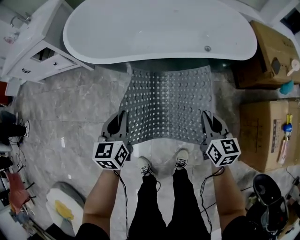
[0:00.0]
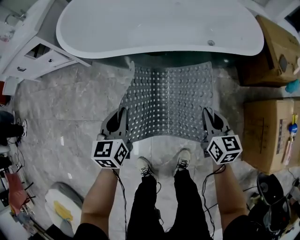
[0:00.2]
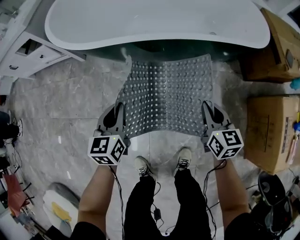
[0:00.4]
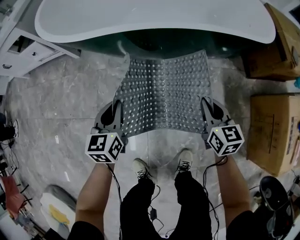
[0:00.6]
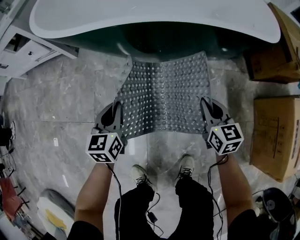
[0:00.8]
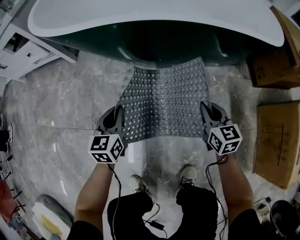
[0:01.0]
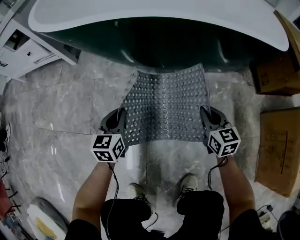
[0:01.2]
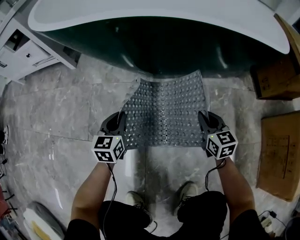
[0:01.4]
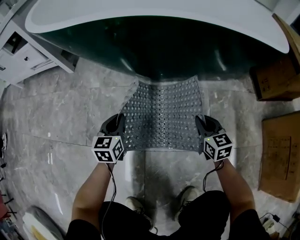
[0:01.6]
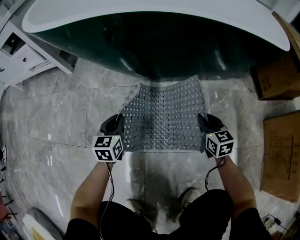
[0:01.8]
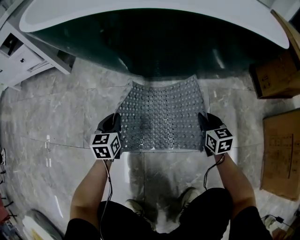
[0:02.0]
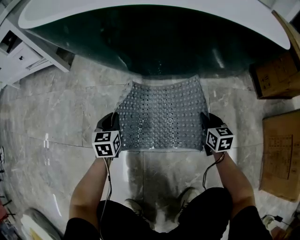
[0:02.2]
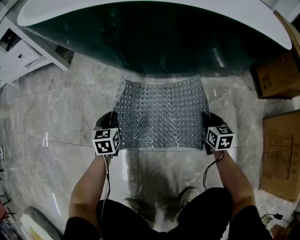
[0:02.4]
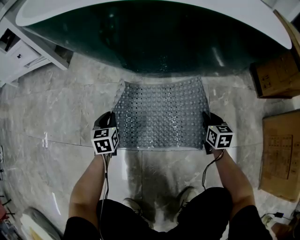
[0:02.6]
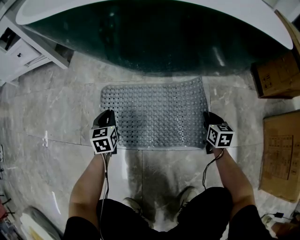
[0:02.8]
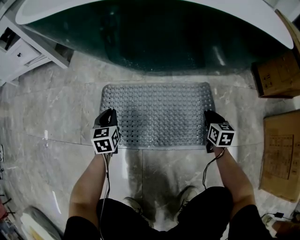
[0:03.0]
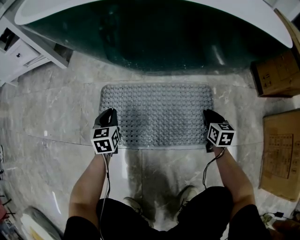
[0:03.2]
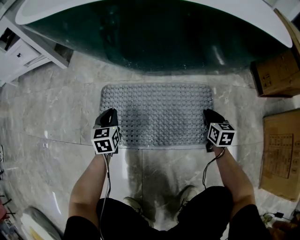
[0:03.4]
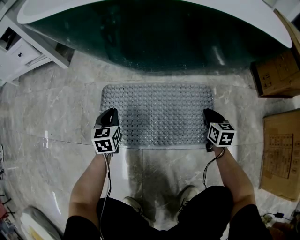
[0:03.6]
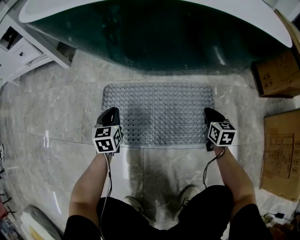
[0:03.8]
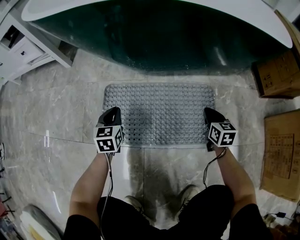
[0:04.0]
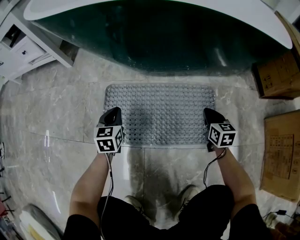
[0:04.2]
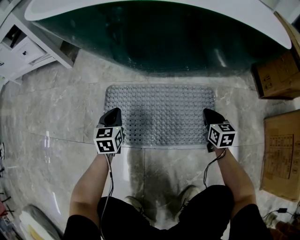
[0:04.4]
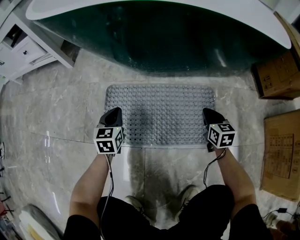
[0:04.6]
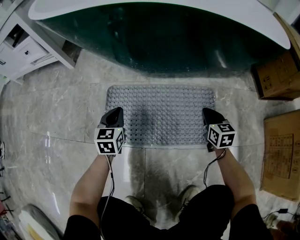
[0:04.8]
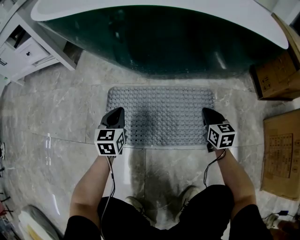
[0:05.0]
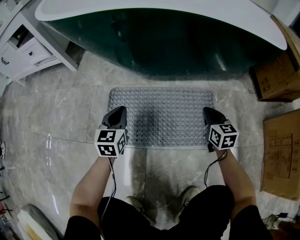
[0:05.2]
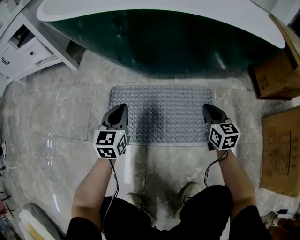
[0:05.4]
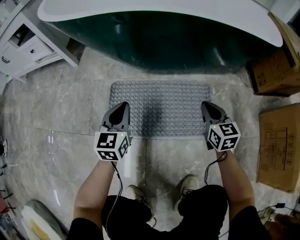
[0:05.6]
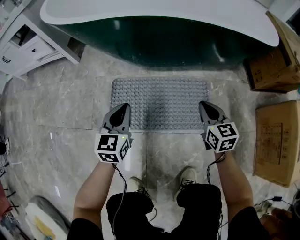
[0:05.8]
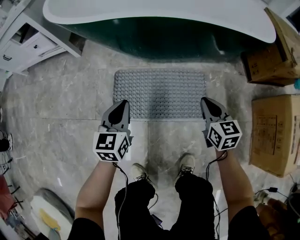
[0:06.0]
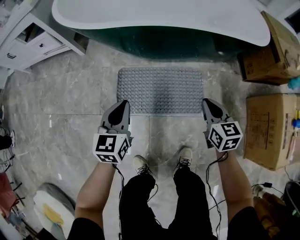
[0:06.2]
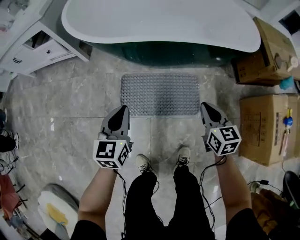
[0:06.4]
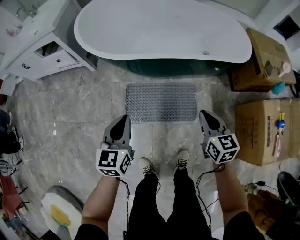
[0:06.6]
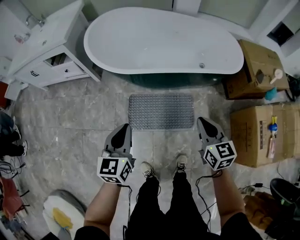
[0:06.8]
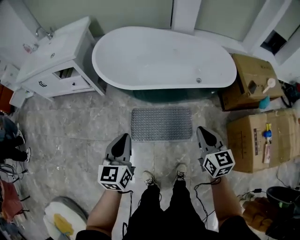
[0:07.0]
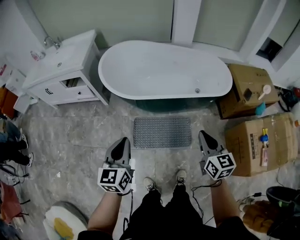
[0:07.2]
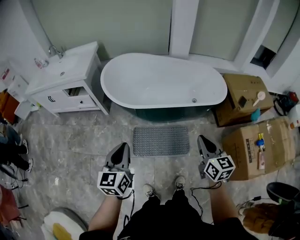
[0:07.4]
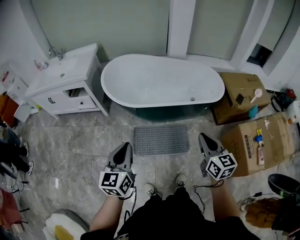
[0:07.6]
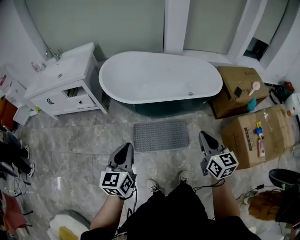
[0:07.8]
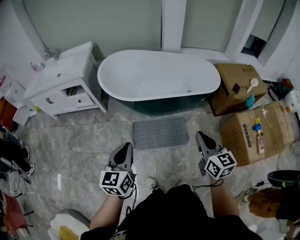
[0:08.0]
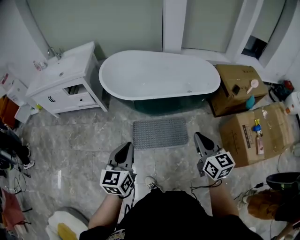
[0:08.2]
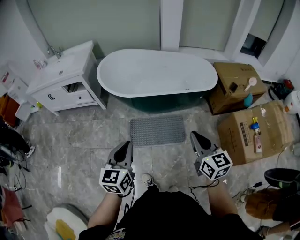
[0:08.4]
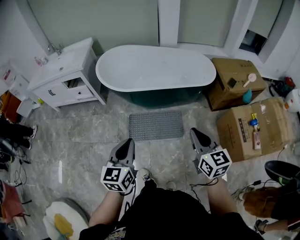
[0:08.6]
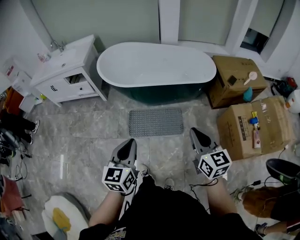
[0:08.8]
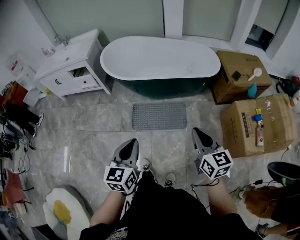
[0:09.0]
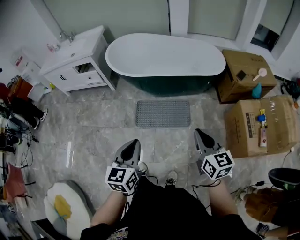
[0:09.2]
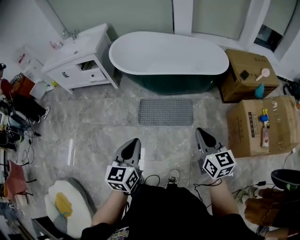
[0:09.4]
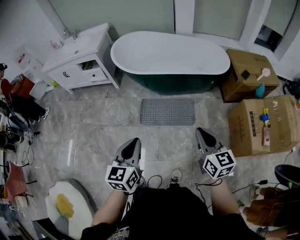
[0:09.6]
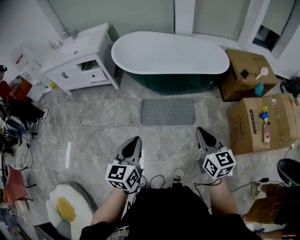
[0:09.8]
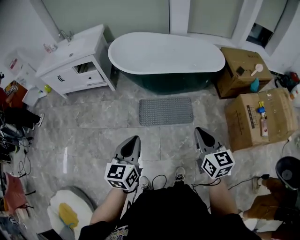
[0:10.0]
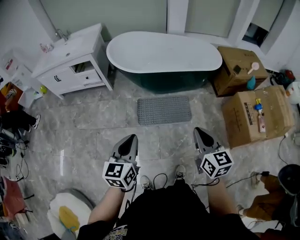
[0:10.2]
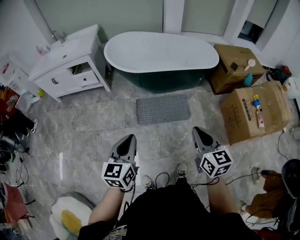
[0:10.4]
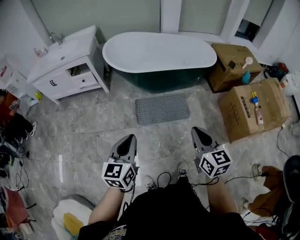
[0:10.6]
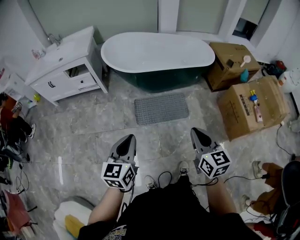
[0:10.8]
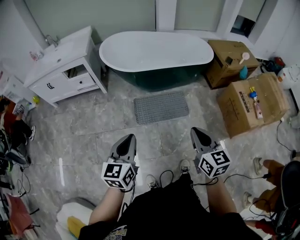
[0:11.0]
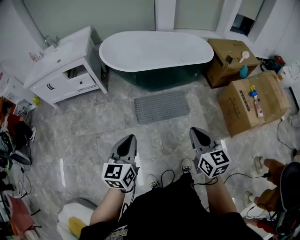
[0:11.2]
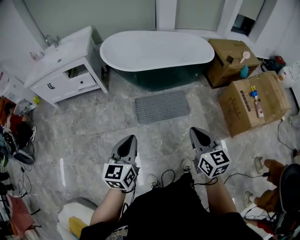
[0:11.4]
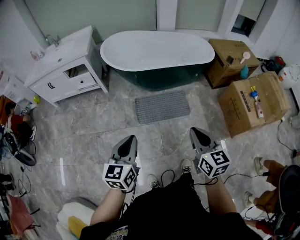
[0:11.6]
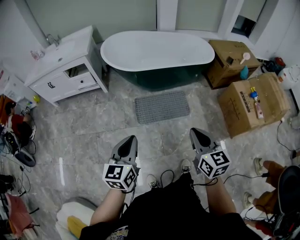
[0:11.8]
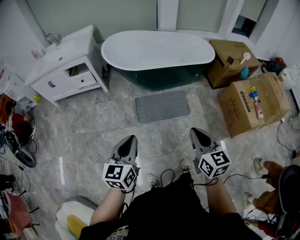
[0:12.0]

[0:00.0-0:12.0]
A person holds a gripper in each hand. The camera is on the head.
0:00.0 to 0:01.6: The two grippers go approximately 40 cm downward.
0:01.6 to 0:03.0: The left gripper is displaced downward by roughly 5 cm, while the right gripper shifts approximately 15 cm downward and to the right, and changes its angle by about 20 degrees.
0:03.0 to 0:04.4: The grippers stay close to where they were, moving slightly.
0:04.4 to 0:06.0: Both grippers travel together upward, about 25 cm.
0:06.0 to 0:07.6: The two grippers go approximately 60 cm upward.
0:07.6 to 0:09.0: The grippers both shift backward and to the right by roughly 20 cm.
0:09.0 to 0:10.4: The grippers both shift to the left by roughly 20 cm.
0:10.4 to 0:12.0: The right gripper moves some 5 cm.

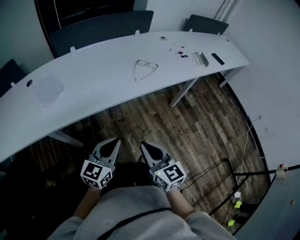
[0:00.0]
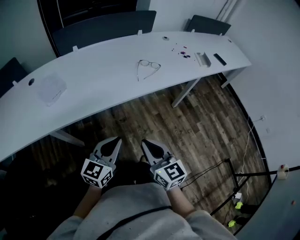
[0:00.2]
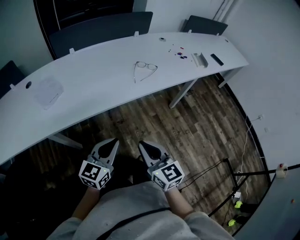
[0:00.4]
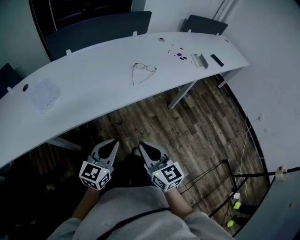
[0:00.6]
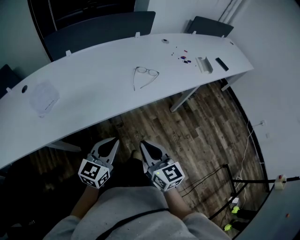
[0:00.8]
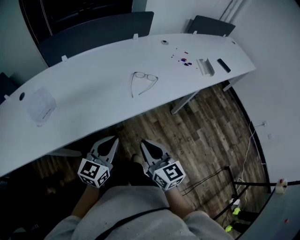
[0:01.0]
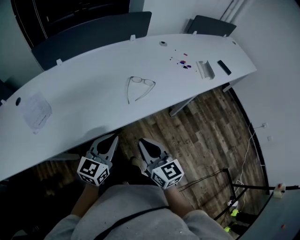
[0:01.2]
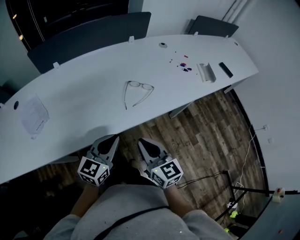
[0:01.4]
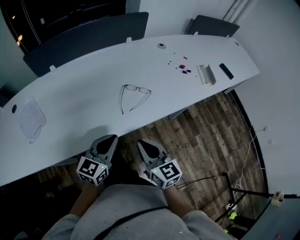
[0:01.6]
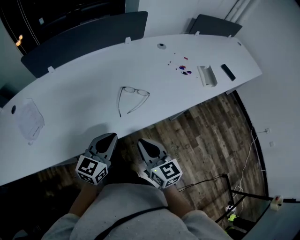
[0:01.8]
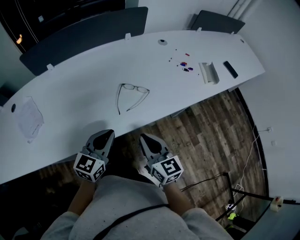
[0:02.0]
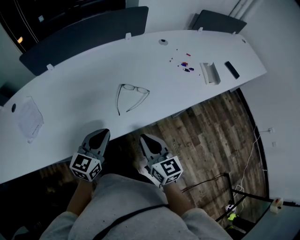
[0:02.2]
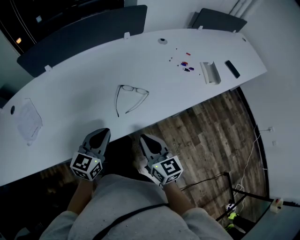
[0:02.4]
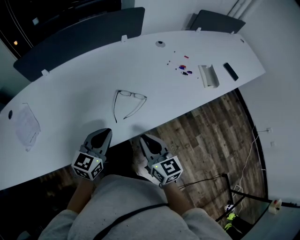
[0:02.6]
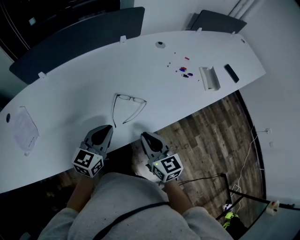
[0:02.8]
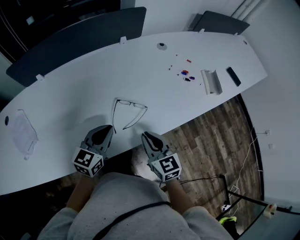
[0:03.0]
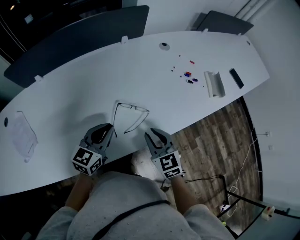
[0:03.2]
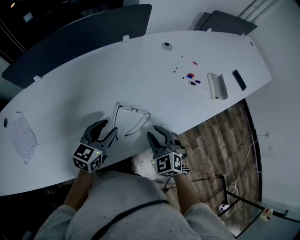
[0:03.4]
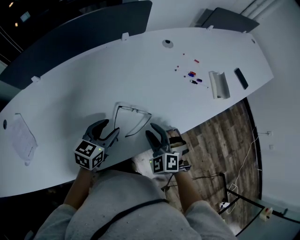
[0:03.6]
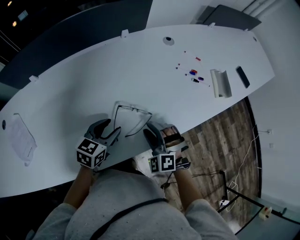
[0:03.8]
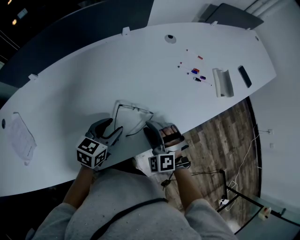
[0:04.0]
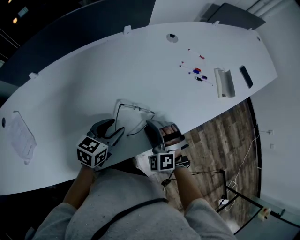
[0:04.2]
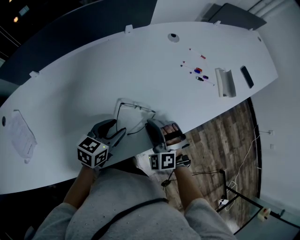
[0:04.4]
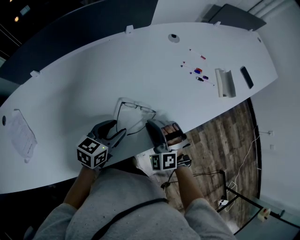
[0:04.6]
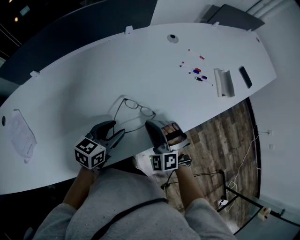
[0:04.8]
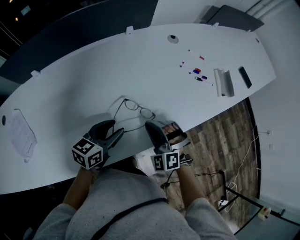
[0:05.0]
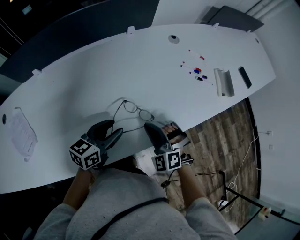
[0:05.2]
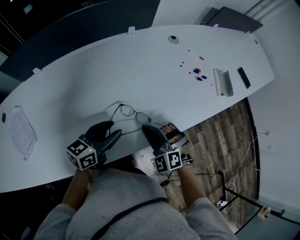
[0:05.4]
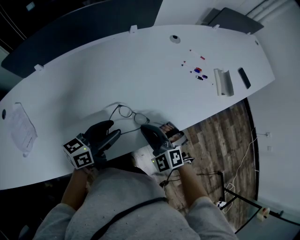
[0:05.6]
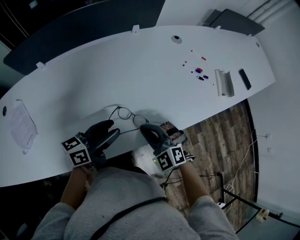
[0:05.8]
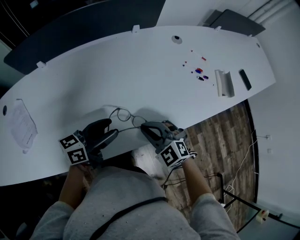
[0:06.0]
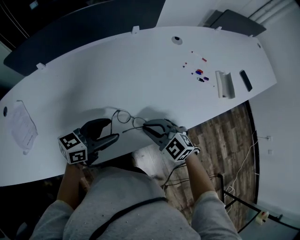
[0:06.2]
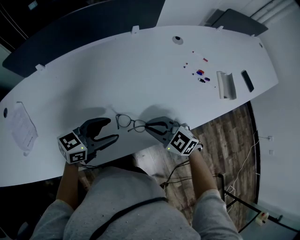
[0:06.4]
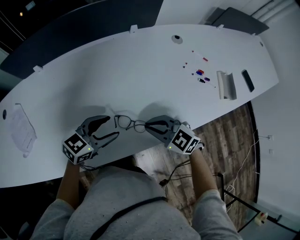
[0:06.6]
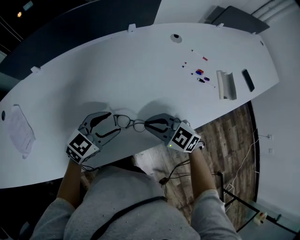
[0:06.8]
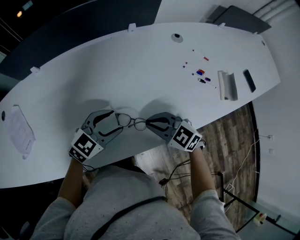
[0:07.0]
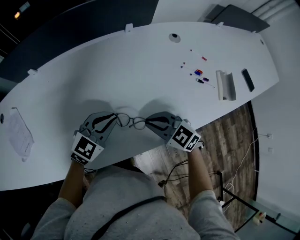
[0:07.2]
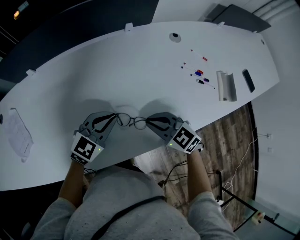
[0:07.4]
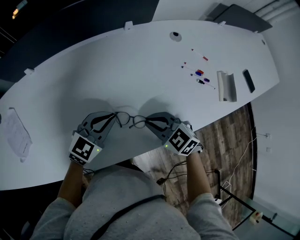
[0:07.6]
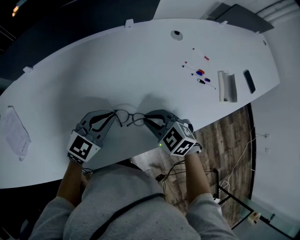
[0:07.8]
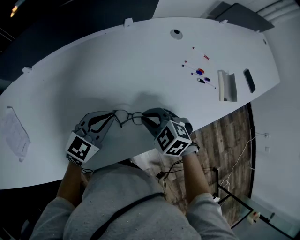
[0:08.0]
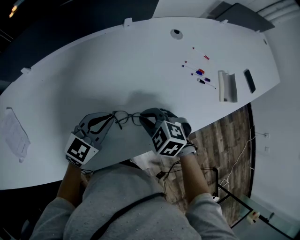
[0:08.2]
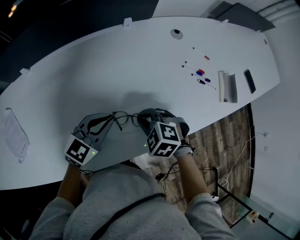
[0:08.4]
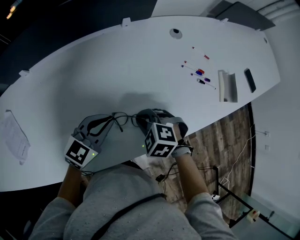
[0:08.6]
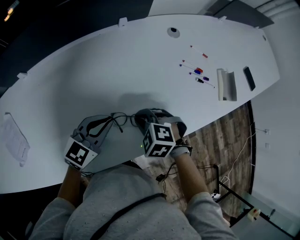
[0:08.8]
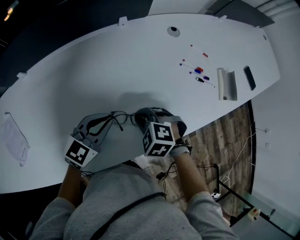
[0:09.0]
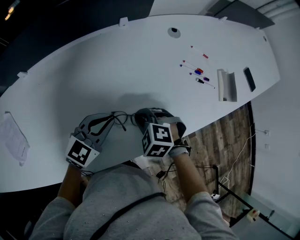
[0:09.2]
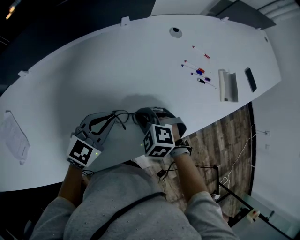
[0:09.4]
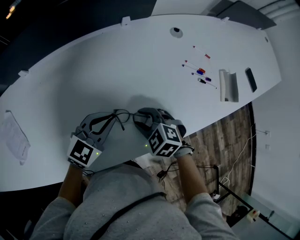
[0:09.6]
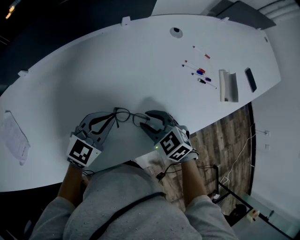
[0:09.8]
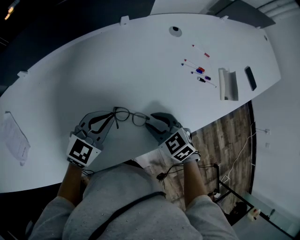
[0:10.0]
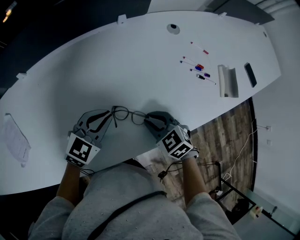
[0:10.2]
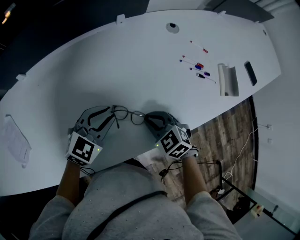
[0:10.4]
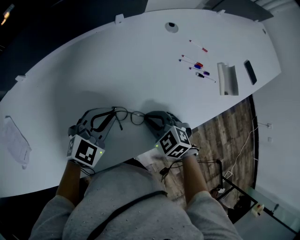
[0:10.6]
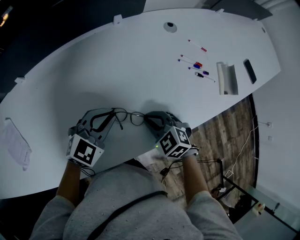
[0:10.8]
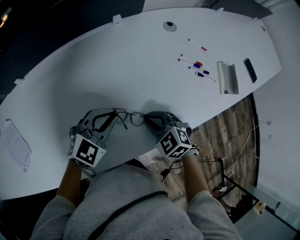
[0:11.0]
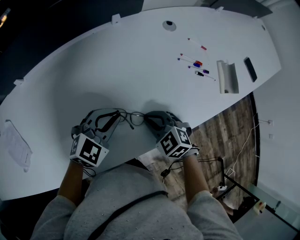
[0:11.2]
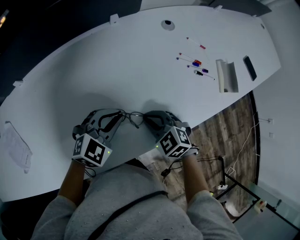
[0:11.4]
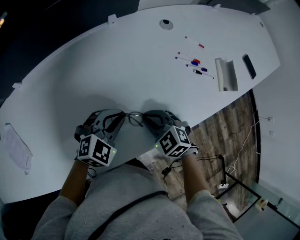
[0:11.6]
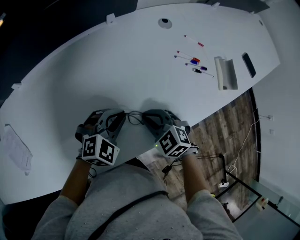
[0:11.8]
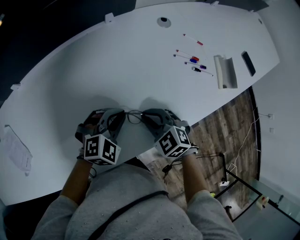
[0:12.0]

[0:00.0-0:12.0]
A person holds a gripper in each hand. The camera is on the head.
0:00.0 to 0:01.6: The grippers both shift forward by approximately 30 cm.
0:01.6 to 0:03.0: Both grippers move forward, approximately 15 cm.
0:03.0 to 0:04.4: The right gripper shifts roughly 10 cm forward and downward, twists approximately 70 degrees counterclockwise, seen from behind, and opens its fingers. The left gripper shifts approximately 10 cm downward and forward, turns by roughly 20 degrees, and opens up.
0:04.4 to 0:06.0: The right gripper heads backward, covering approximately 5 cm, and turns by some 30 degrees, while the left gripper travels upward by roughly 5 cm, and changes its angle by about 30 degrees.
0:06.0 to 0:07.6: The left gripper ends up roughly 10 cm from where it was, rolls clockwise, seen from behind, by roughly 40 degrees, and closes its fingers, while the right gripper changes place by roughly 10 cm, and rotates approximately 20 degrees.
0:07.6 to 0:09.0: The right gripper rotates approximately 30 degrees.
0:09.0 to 0:10.4: The right gripper turns by approximately 20 degrees, and opens, then closes again.
0:10.4 to 0:12.0: The left gripper moves to the right, about 5 cm, and changes its angle by about 20 degrees.
